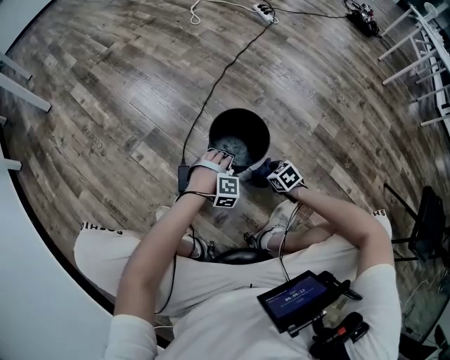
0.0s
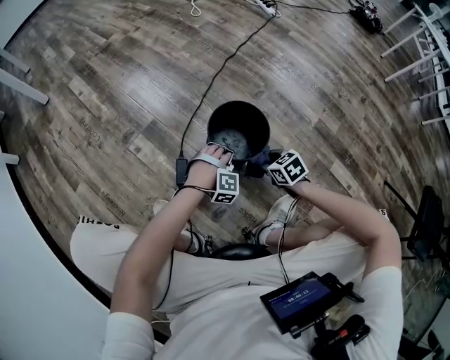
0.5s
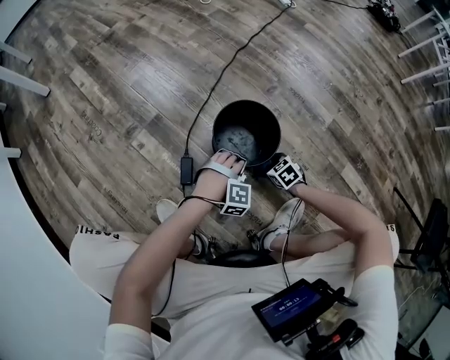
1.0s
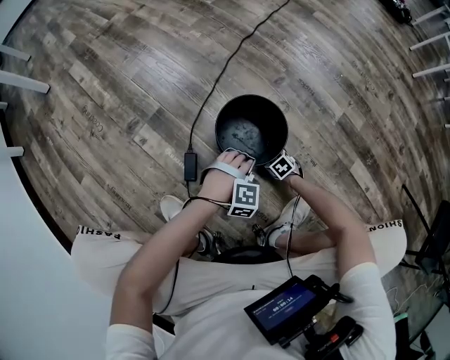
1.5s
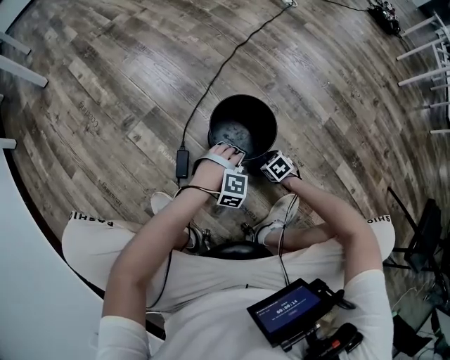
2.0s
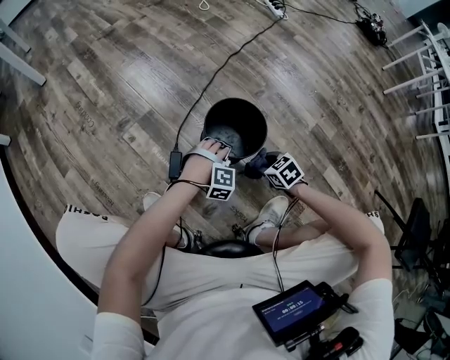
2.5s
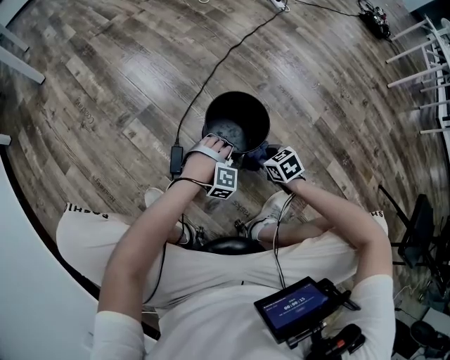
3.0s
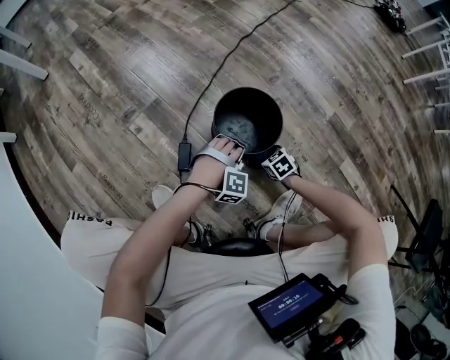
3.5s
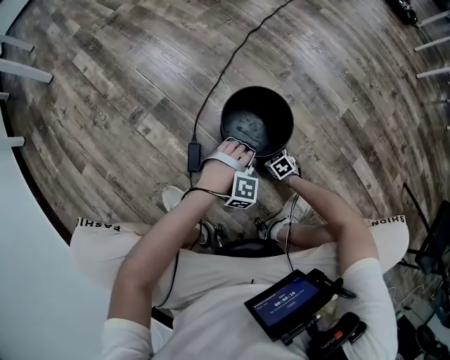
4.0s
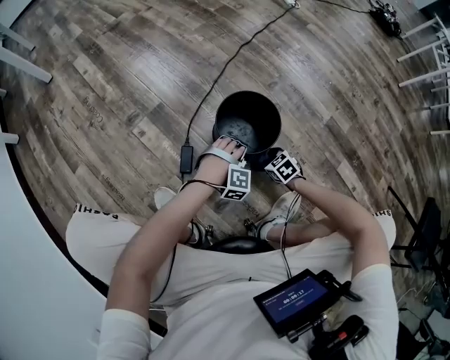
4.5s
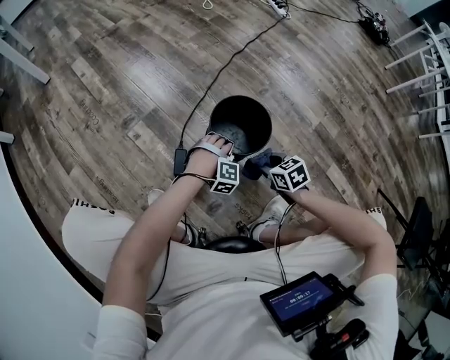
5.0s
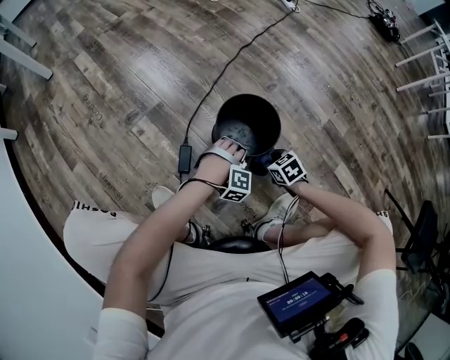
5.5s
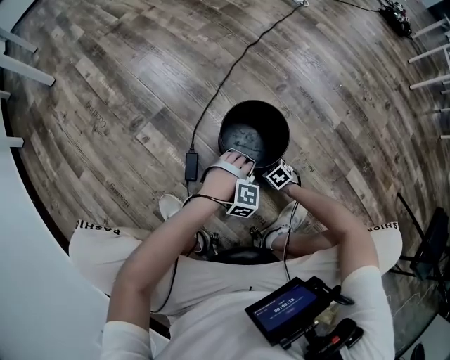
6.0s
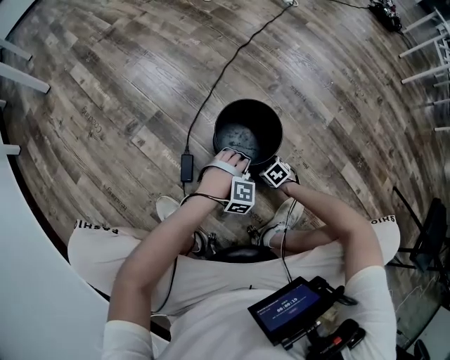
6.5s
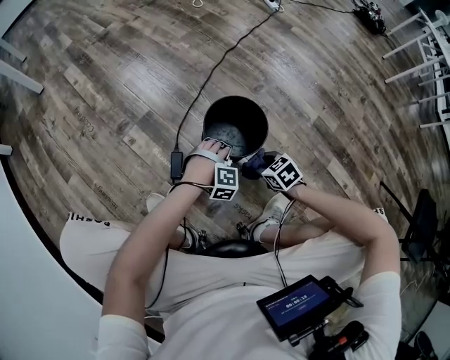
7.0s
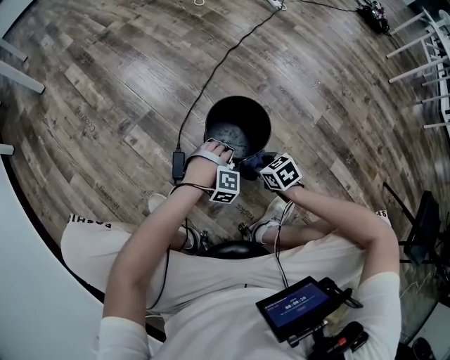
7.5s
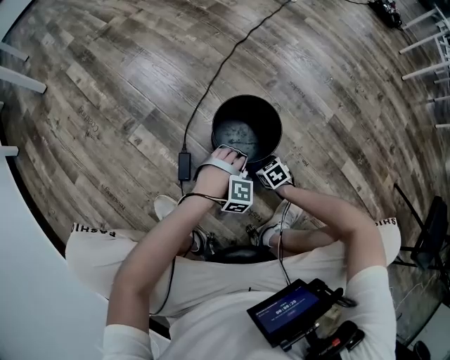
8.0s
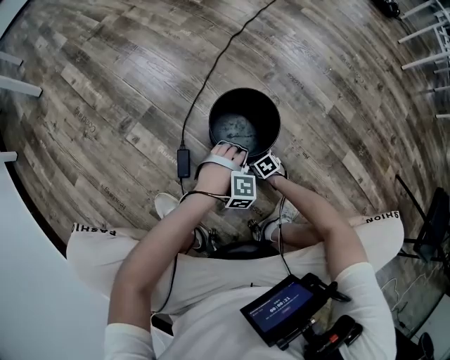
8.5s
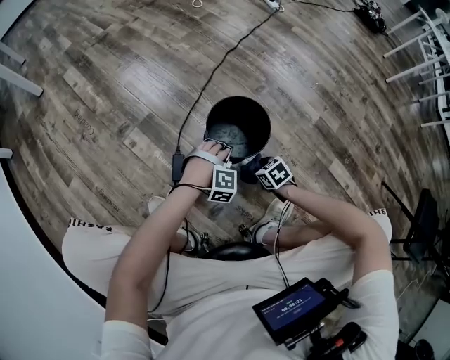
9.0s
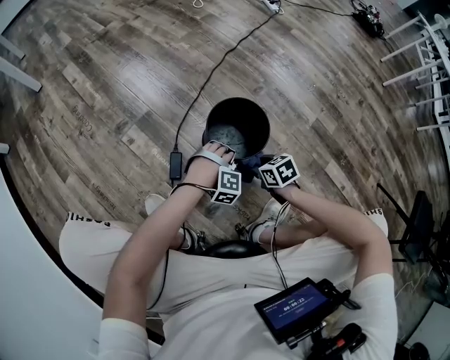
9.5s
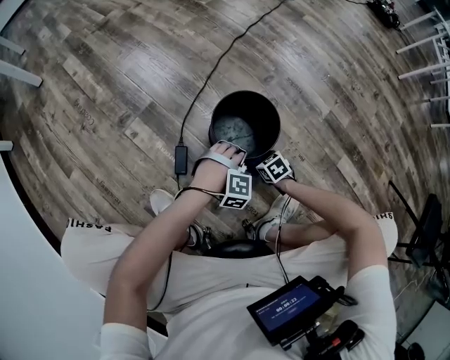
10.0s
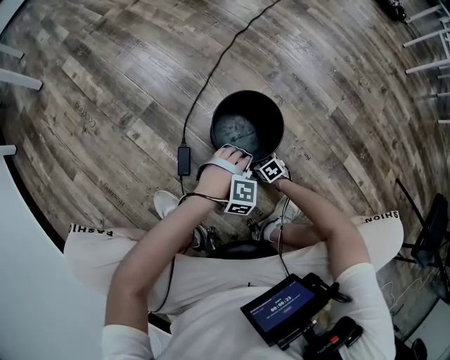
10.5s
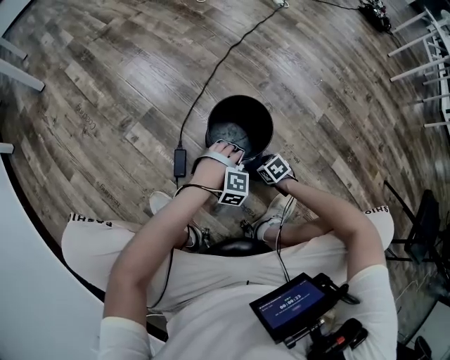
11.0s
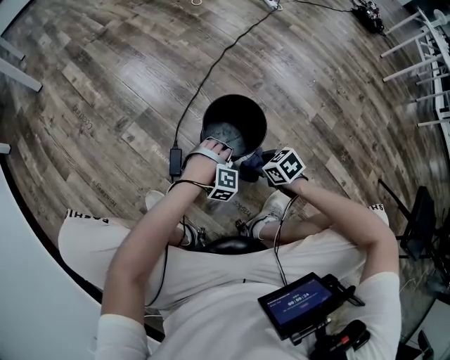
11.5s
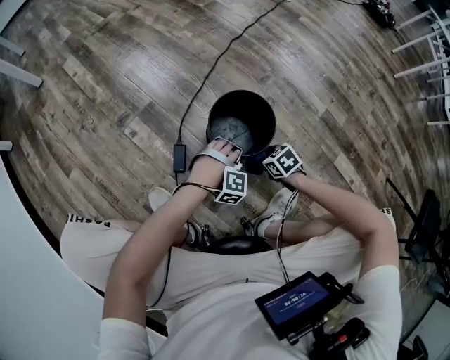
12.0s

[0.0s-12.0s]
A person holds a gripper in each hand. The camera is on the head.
0.0s to 2.0s: The right gripper goes up and down, about 25 cm each way, reversing 2 times.
2.0s to 4.0s: The right gripper travels downward by some 10 cm.
4.0s to 6.0s: The right gripper reaches some 25 cm upward, then returns.
6.0s to 8.0s: The right gripper moves some 20 cm upward and comes back.
8.0s to 10.0s: The right gripper swings up and down, roughly 20 cm each way, with 2 reversals.
10.0s to 12.0s: The right gripper swings up and down, roughly 25 cm each way, with 2 reversals.

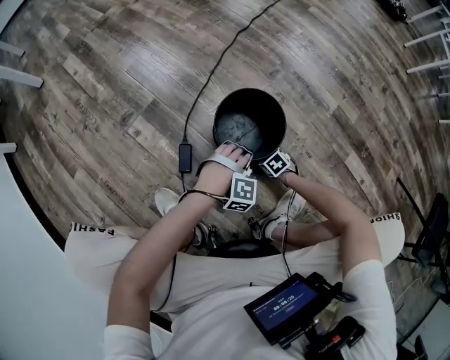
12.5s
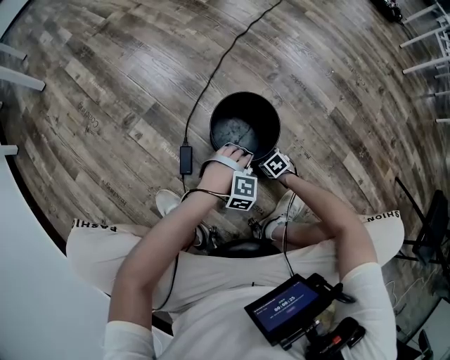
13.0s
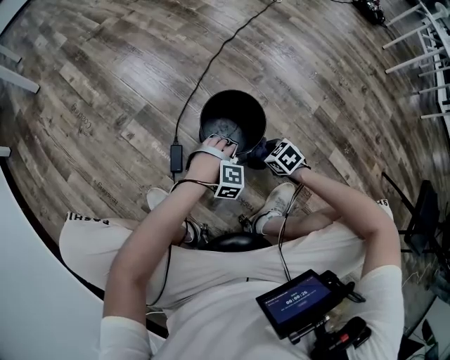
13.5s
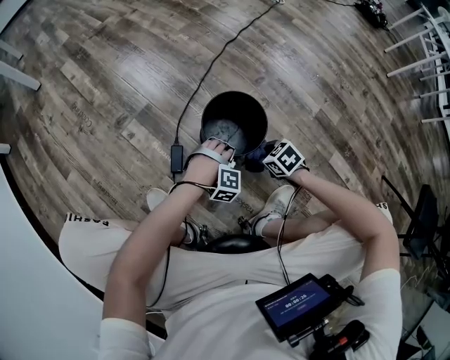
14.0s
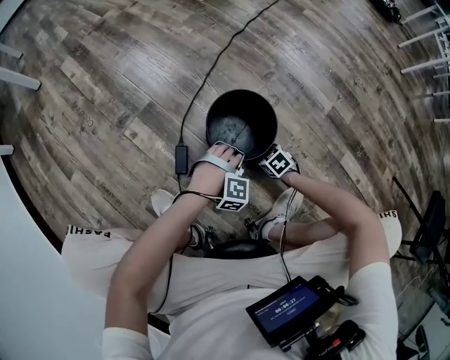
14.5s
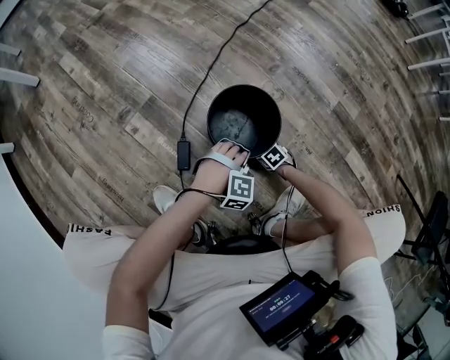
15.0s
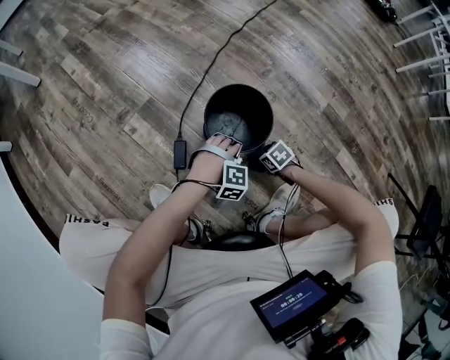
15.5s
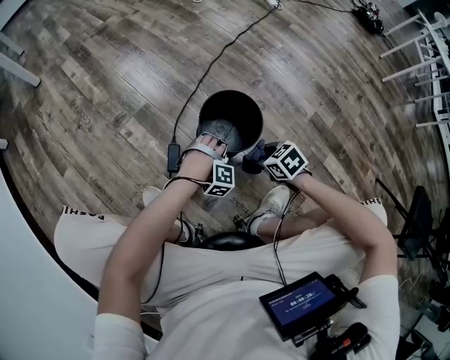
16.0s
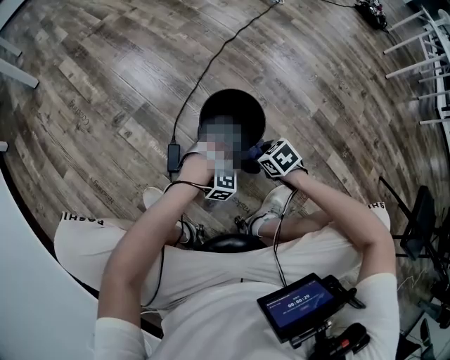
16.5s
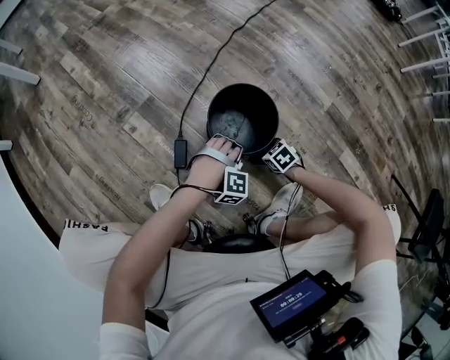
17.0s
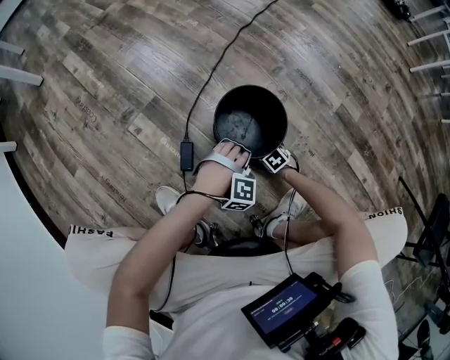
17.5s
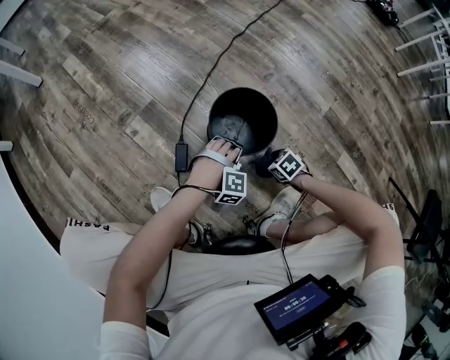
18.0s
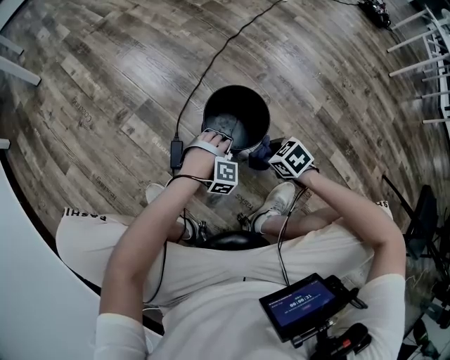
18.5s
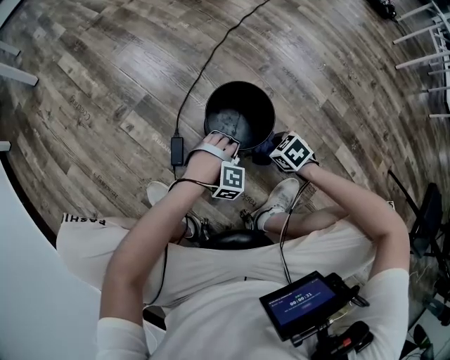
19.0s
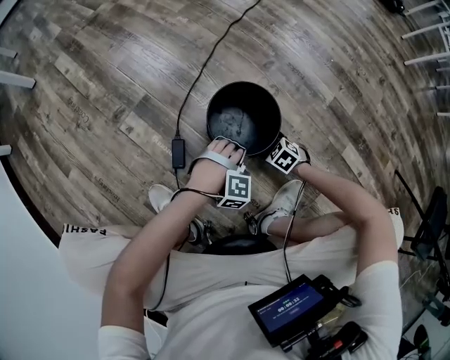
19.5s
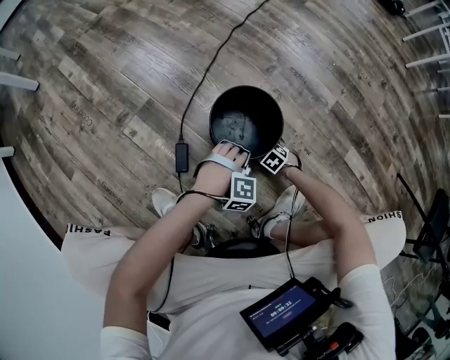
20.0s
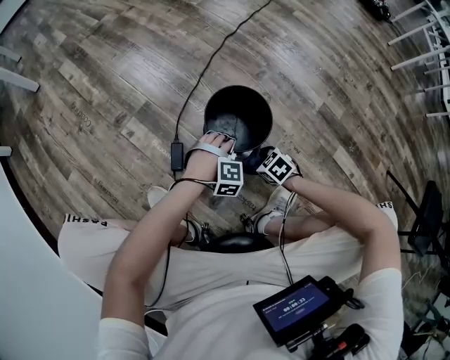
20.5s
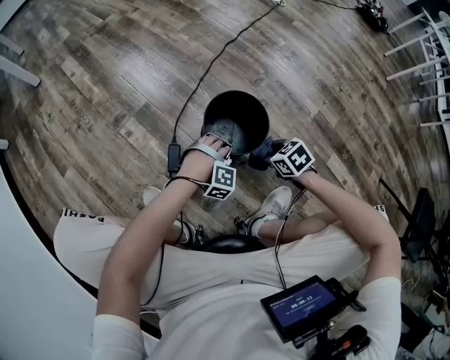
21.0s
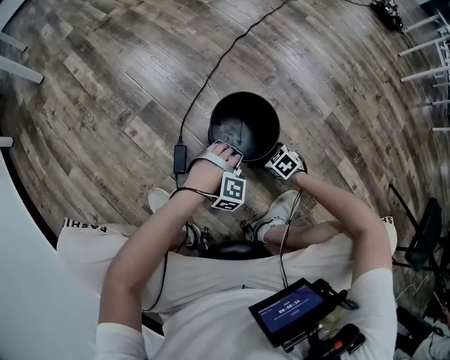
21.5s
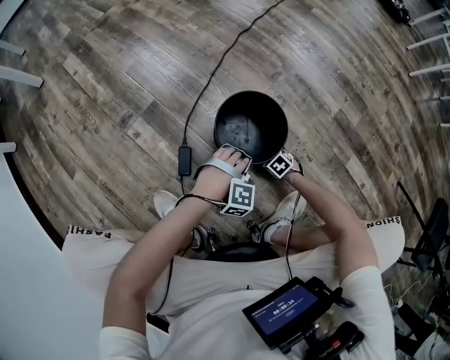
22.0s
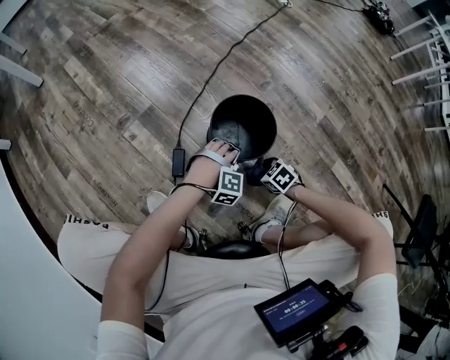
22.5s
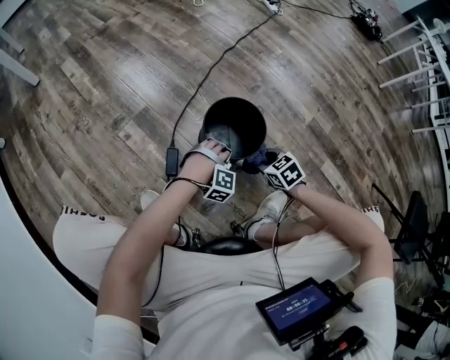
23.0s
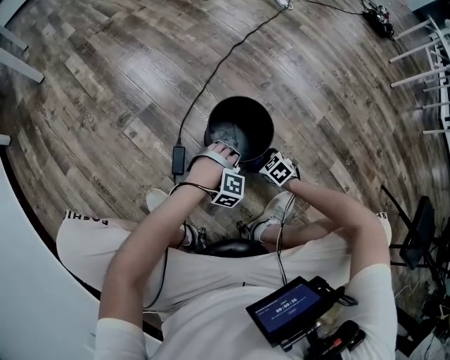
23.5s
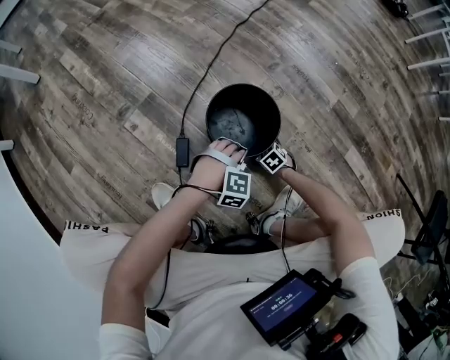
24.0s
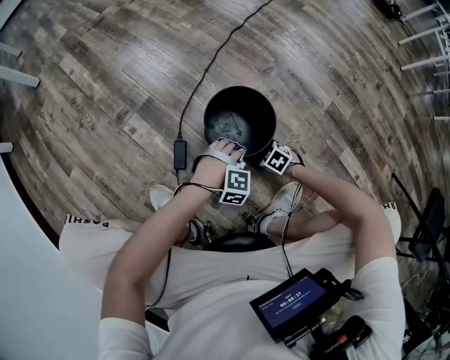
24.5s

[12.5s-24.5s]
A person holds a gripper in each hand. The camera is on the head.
12.5s to 14.5s: The right gripper reaches roughly 20 cm upward, then returns.
14.5s to 16.5s: The right gripper shifts about 15 cm upward.
16.5s to 18.5s: The right gripper moves some 20 cm downward and comes back.
18.5s to 20.5s: The right gripper shifts approximately 10 cm downward.
20.5s to 22.5s: The right gripper swings up and down, roughly 25 cm each way, with 2 reversals.
22.5s to 24.5s: The right gripper moves up and down over about 25 cm, changing direction 2 times.

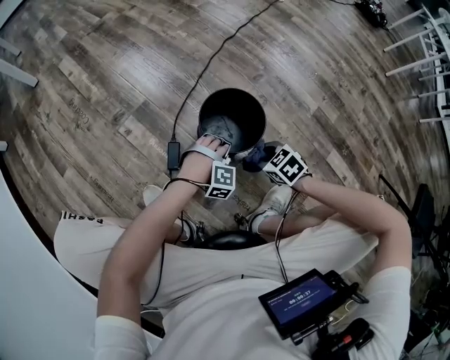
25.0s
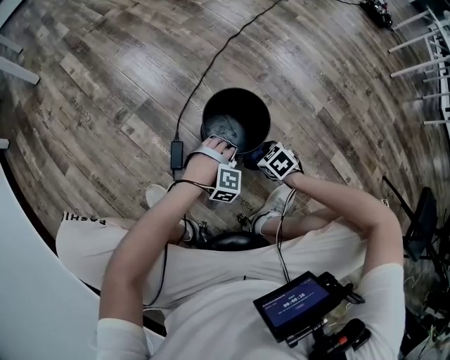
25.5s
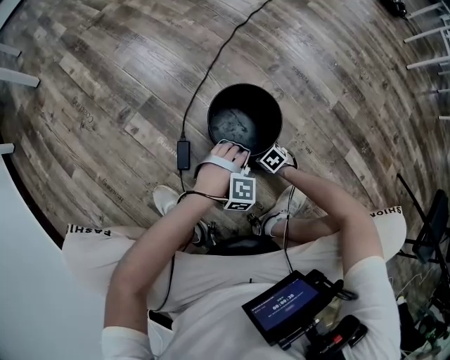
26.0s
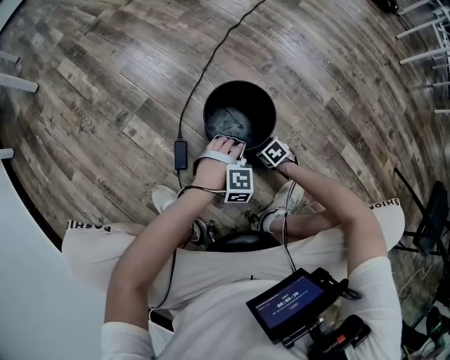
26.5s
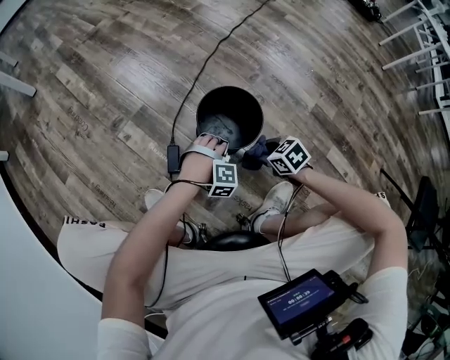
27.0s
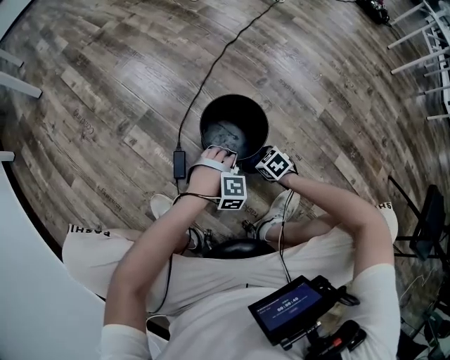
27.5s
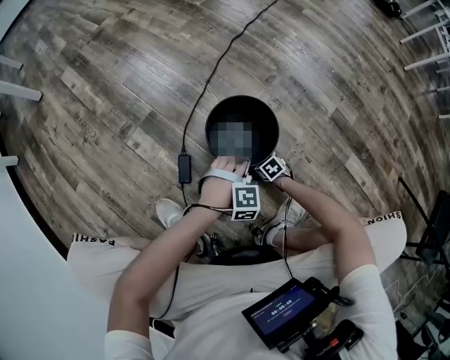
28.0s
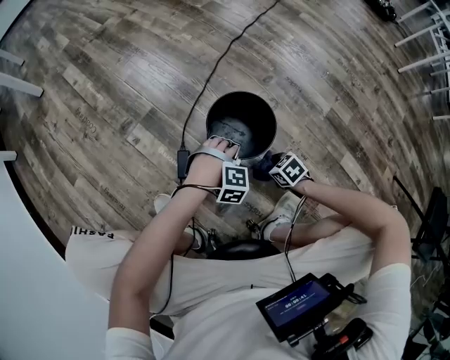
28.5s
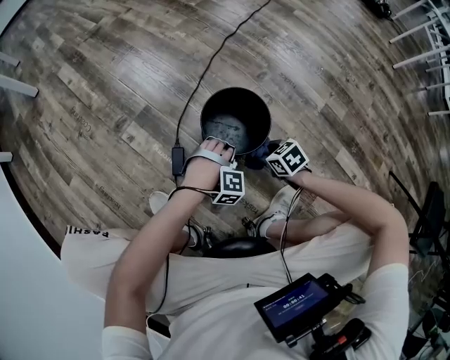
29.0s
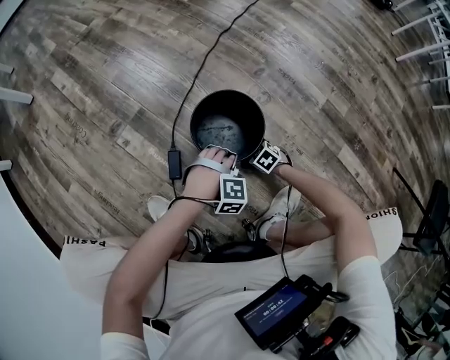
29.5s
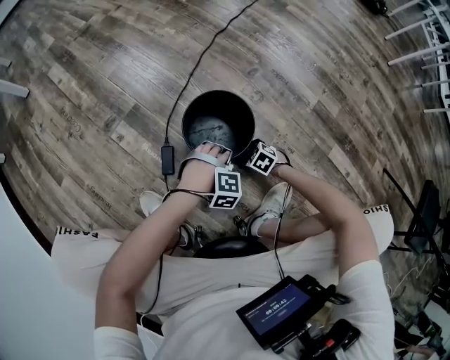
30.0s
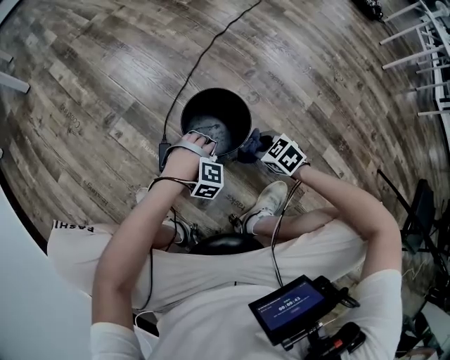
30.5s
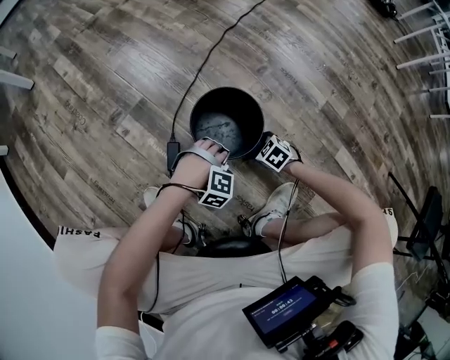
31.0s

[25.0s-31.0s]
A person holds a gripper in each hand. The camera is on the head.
25.0s to 27.0s: The right gripper goes downward and returns, about 20 cm each way.
27.0s to 29.0s: The right gripper moves about 20 cm downward and comes back.
29.0s to 31.0s: The right gripper goes up and down, approximately 20 cm each way, reversing 2 times, and rotates some 20 degrees.
